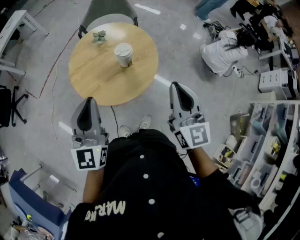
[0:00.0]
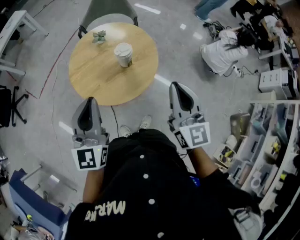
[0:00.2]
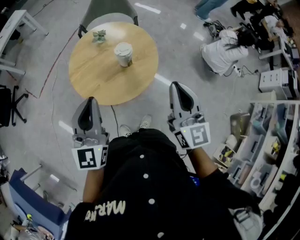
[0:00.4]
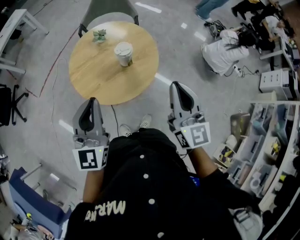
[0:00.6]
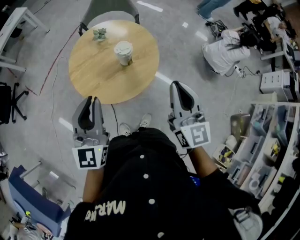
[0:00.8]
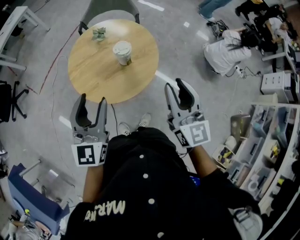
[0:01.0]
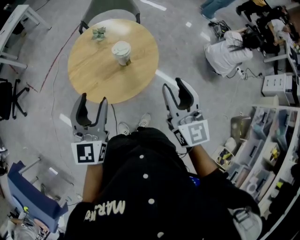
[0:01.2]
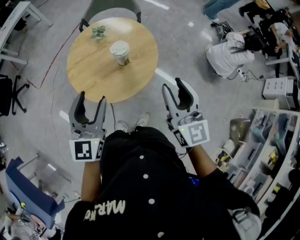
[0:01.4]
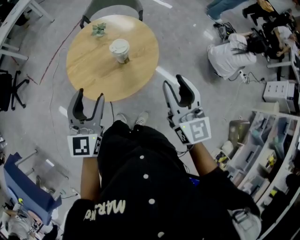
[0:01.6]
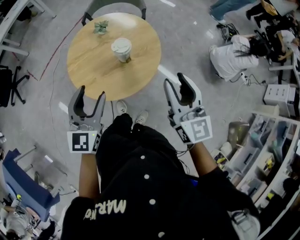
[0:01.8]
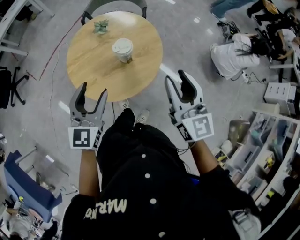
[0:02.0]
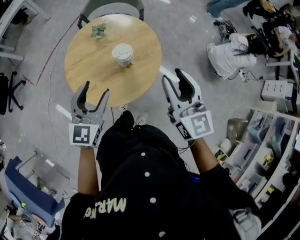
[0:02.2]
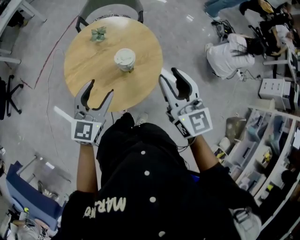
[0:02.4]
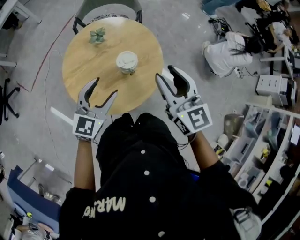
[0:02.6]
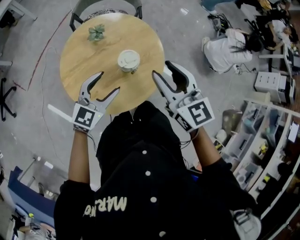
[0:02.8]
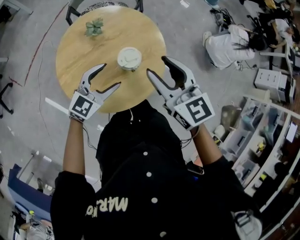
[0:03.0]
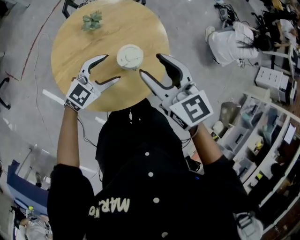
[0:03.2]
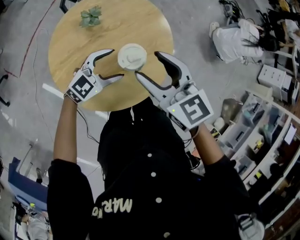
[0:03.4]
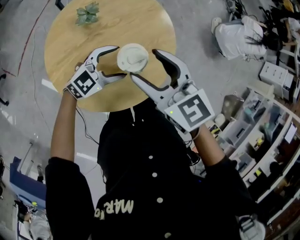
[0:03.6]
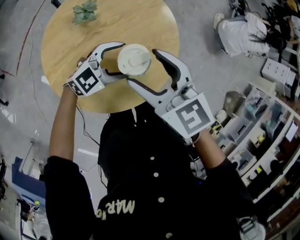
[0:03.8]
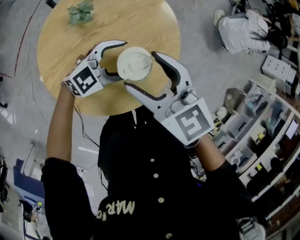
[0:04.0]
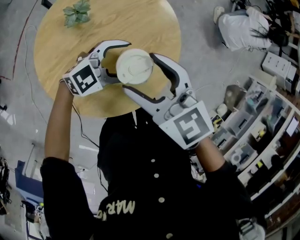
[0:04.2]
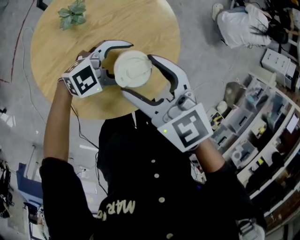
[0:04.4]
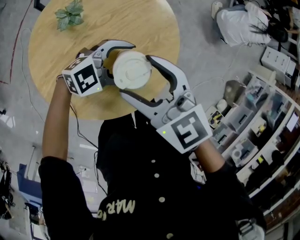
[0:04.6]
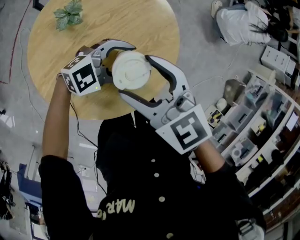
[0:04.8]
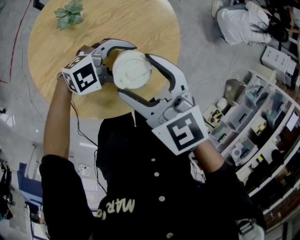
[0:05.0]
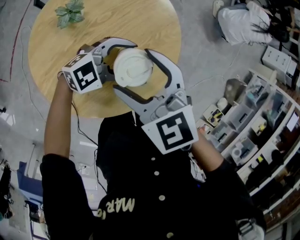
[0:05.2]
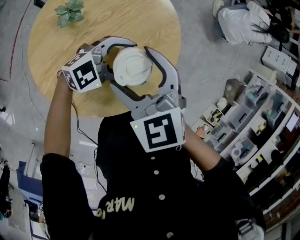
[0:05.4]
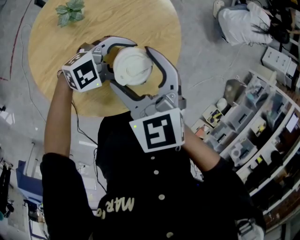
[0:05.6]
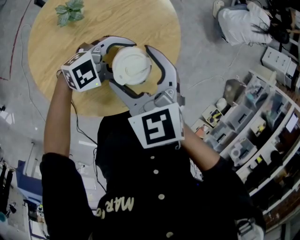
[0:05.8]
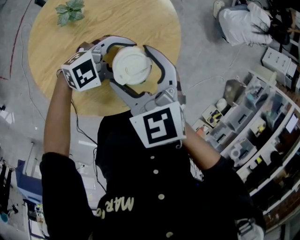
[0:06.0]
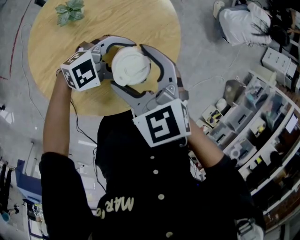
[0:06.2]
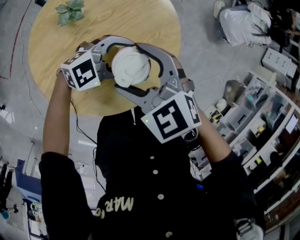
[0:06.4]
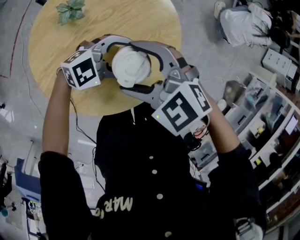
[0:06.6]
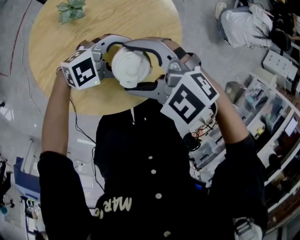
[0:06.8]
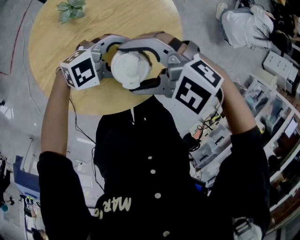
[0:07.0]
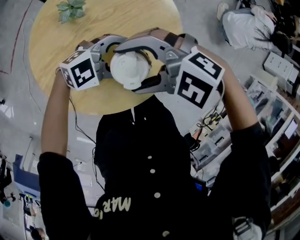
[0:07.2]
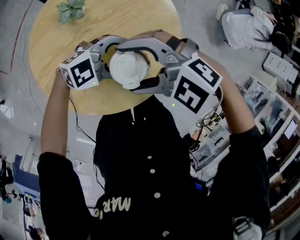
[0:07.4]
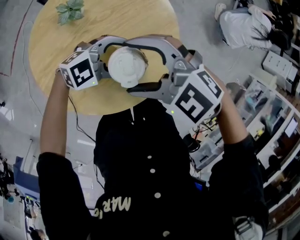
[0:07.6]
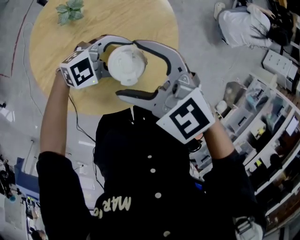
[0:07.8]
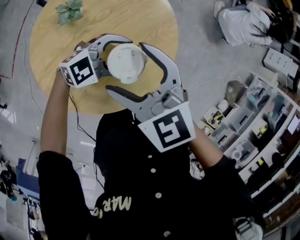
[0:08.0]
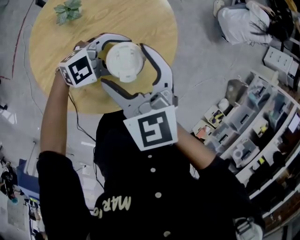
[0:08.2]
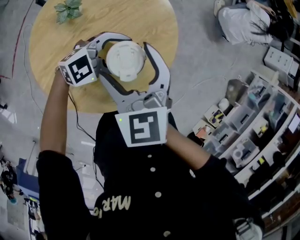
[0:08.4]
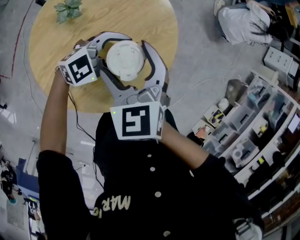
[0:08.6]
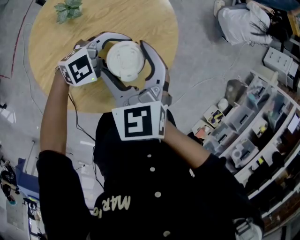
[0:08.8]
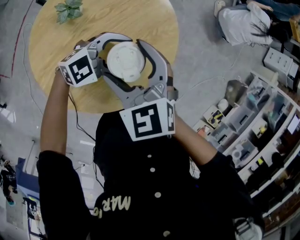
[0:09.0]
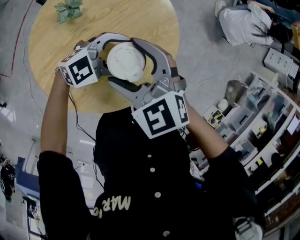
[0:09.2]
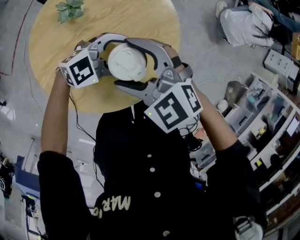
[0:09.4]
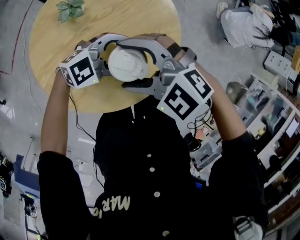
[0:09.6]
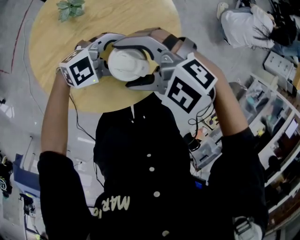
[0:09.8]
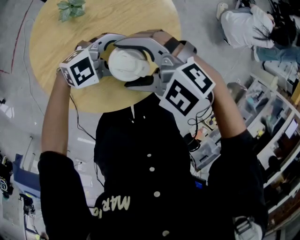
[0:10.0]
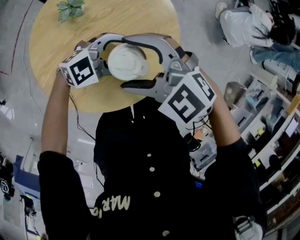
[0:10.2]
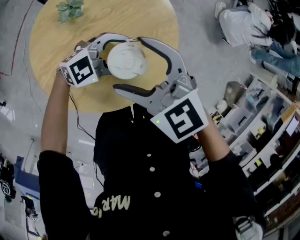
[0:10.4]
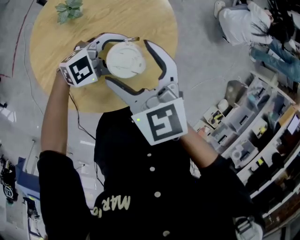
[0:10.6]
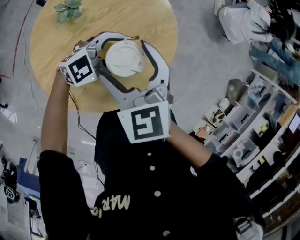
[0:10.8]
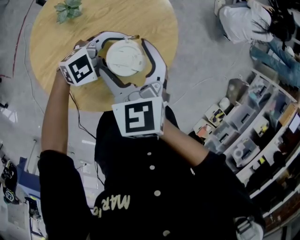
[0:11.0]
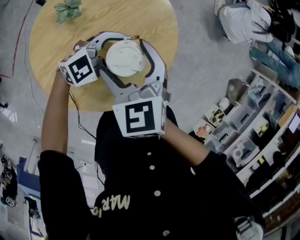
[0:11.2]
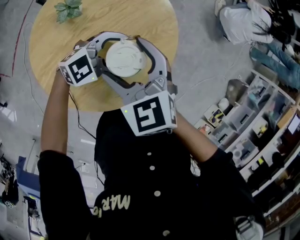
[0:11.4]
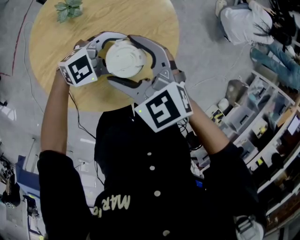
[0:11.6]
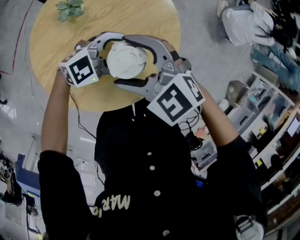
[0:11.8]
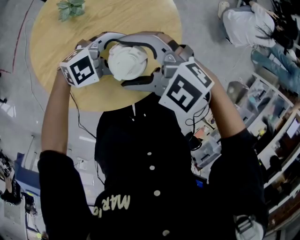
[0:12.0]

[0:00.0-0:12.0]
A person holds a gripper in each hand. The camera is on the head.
0:00.0 to 0:01.6: The left gripper shifts some 5 cm downward, and opens its fingers, while the right gripper is displaced forward by roughly 5 cm.
0:01.6 to 0:03.0: The left gripper shifts roughly 25 cm forward and downward, and rotates roughly 40 degrees. Meanwhile the right gripper travels forward, to the left and downward by approximately 25 cm.
0:03.0 to 0:04.4: Both grippers travel together downward, some 15 cm. The left gripper swivels approximately 40 degrees; the right gripper turns by some 20 degrees.
0:04.4 to 0:06.0: The grippers stay close to where they were, moving slightly.
0:06.0 to 0:07.6: The right gripper turns by roughly 50 degrees.
0:07.6 to 0:09.0: The right gripper rotates about 50 degrees.
0:09.0 to 0:10.4: The right gripper turns by roughly 20 degrees.
0:10.4 to 0:12.0: The right gripper changes its angle by about 30 degrees.

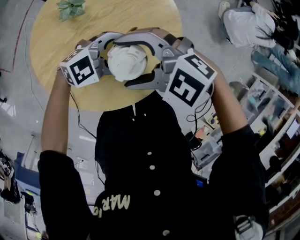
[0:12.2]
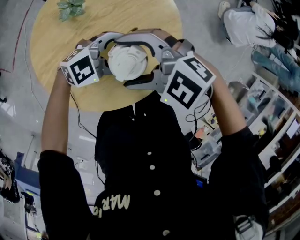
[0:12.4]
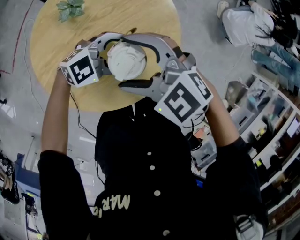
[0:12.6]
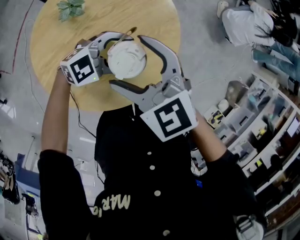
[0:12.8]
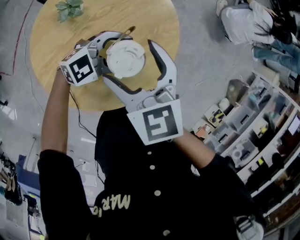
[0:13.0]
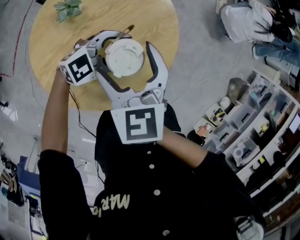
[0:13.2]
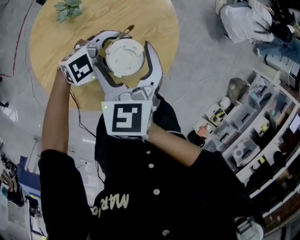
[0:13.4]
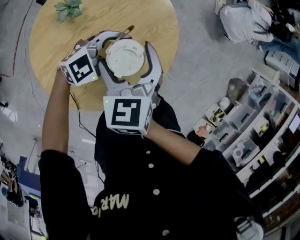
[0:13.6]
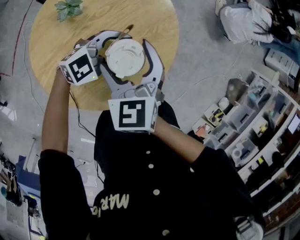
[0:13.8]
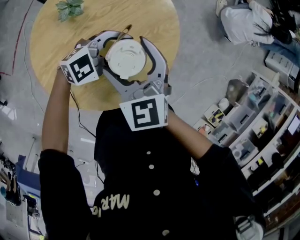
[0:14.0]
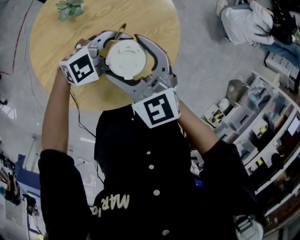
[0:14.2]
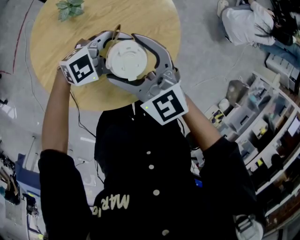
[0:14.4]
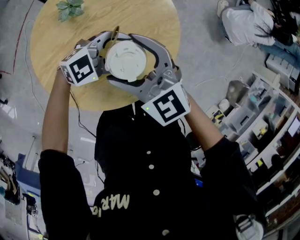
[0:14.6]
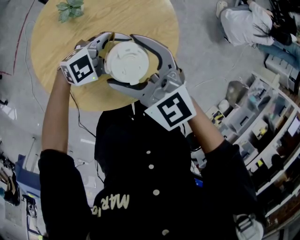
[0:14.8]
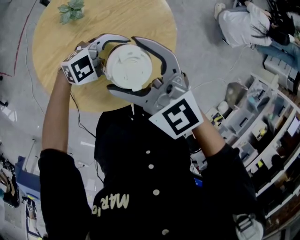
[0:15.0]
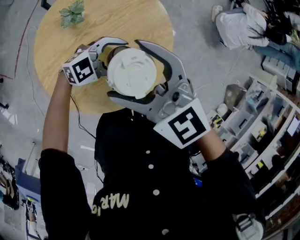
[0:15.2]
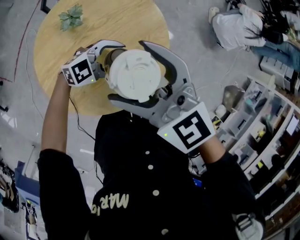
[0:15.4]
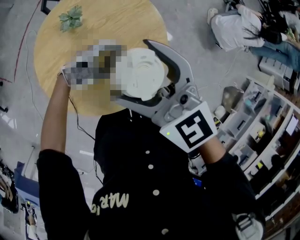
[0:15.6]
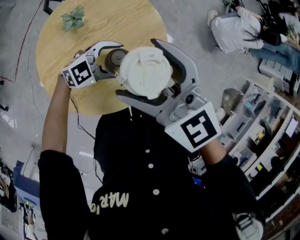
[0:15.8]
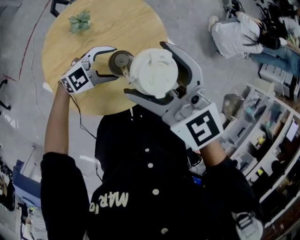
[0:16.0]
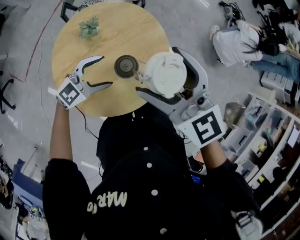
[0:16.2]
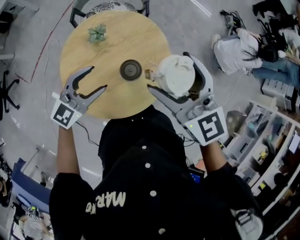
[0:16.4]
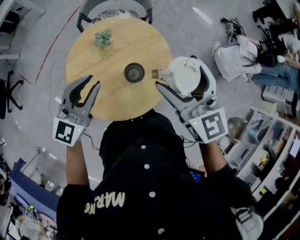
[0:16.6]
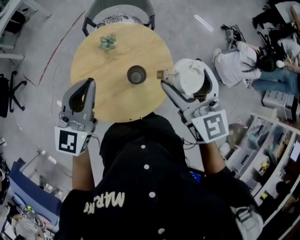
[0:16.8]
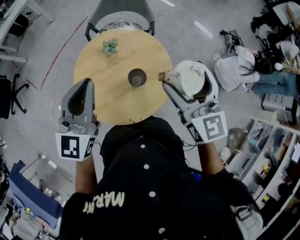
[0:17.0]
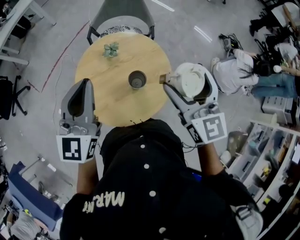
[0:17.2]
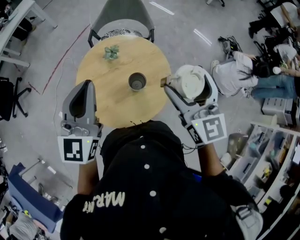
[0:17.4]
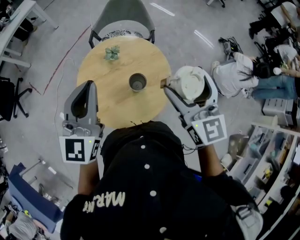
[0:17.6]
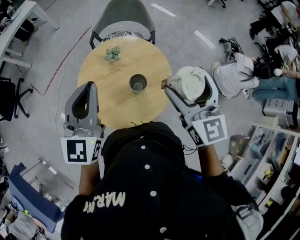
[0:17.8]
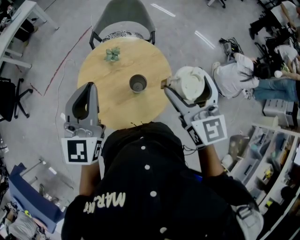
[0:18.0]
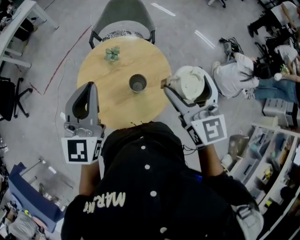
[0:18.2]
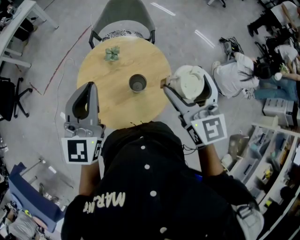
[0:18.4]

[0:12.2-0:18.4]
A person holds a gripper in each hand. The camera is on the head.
0:12.2 to 0:13.8: The right gripper rotates approximately 80 degrees.
0:13.8 to 0:15.4: The right gripper shifts approximately 15 cm upward, and changes its angle by about 40 degrees.
0:15.4 to 0:16.8: The right gripper is displaced upward by about 15 cm, and turns by about 20 degrees, while the left gripper heads upward, covering some 35 cm, rotates approximately 70 degrees, and closes.
0:16.8 to 0:18.4: The left gripper goes roughly 5 cm upward.

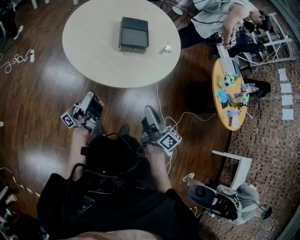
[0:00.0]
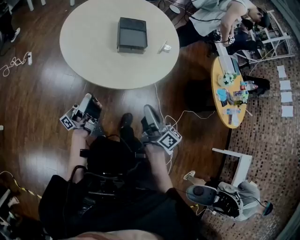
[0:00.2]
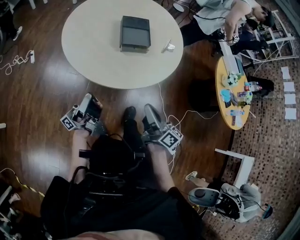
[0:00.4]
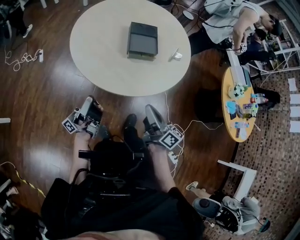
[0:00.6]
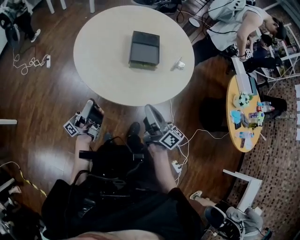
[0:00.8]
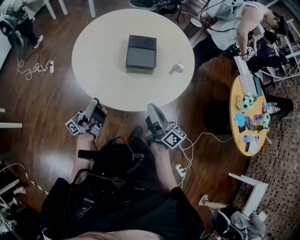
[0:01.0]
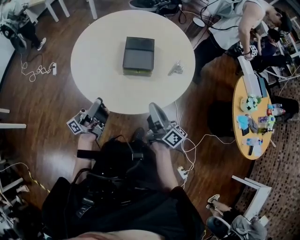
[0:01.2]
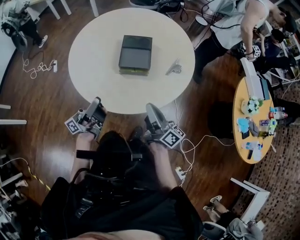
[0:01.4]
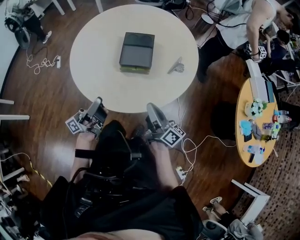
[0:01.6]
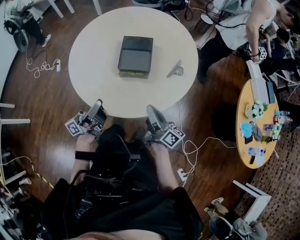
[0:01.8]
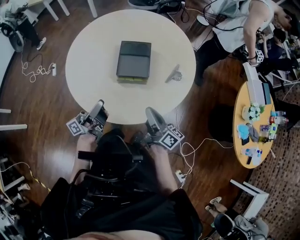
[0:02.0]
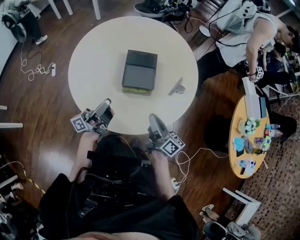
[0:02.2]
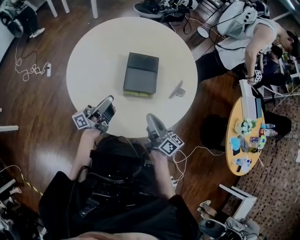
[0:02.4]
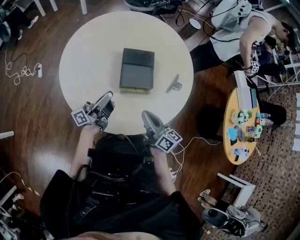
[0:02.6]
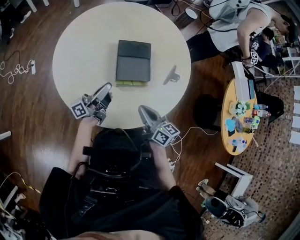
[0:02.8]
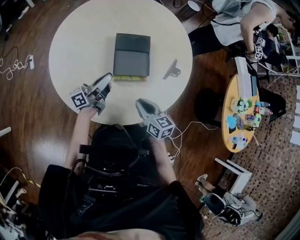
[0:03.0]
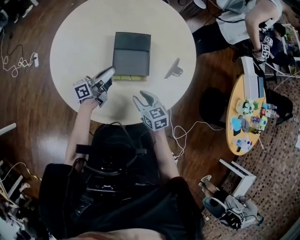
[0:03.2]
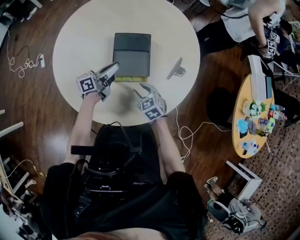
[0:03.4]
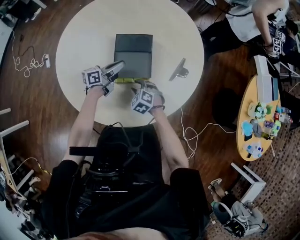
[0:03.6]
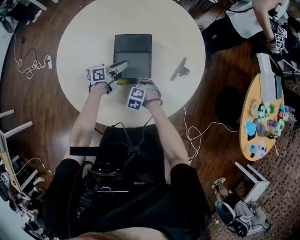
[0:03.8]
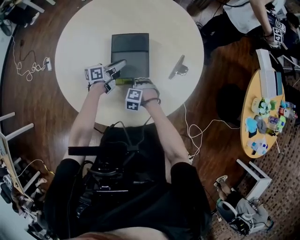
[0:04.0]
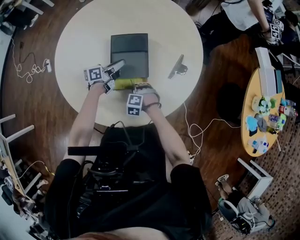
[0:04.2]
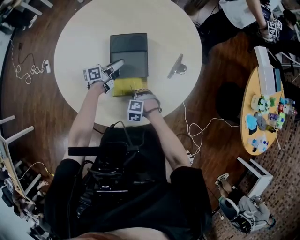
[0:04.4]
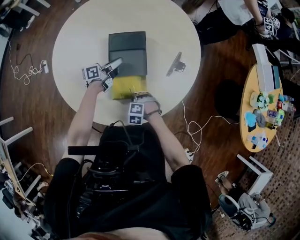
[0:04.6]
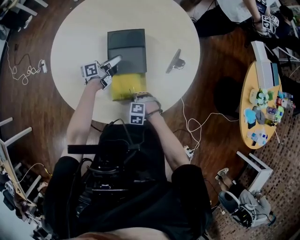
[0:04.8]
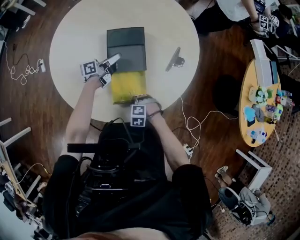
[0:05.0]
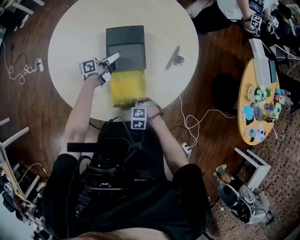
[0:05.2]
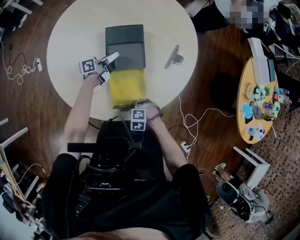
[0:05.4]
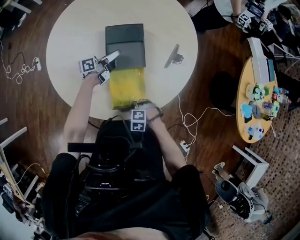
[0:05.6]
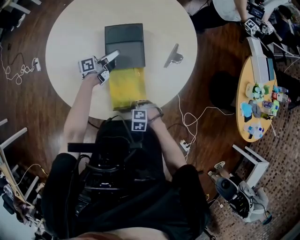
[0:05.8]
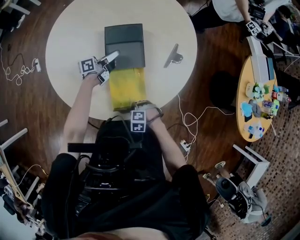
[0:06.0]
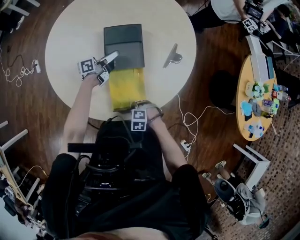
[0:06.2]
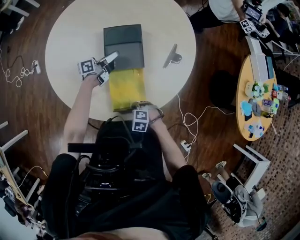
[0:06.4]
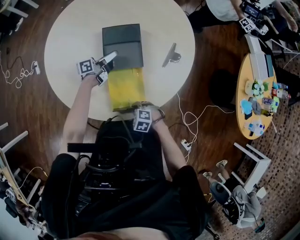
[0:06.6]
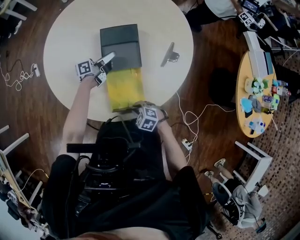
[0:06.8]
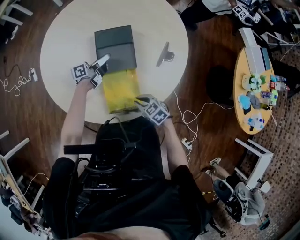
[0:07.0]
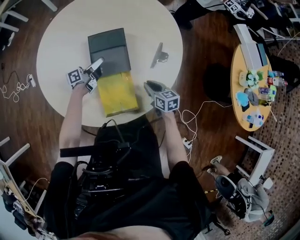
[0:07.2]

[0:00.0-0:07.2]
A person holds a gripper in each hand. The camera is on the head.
0:00.0 to 0:01.4: The grippers both shift forward and to the right by some 20 cm. The left gripper changes its angle by some 20 degrees.
0:01.4 to 0:02.8: The right gripper heads forward, to the left and downward, covering about 15 cm, and rotates some 30 degrees. Meanwhile the left gripper travels forward by some 20 cm.
0:02.8 to 0:04.4: The left gripper moves forward, downward and to the right, approximately 25 cm, and points its fingers roughly 30 degrees further downward. Meanwhile the right gripper shifts approximately 25 cm downward, tilts its fingers roughly 60 degrees downward, and opens, then closes again.
0:04.4 to 0:05.8: The right gripper shifts by approximately 15 cm.
0:05.8 to 0:07.2: The right gripper moves about 25 cm, and rolls clockwise, seen from behind, by roughly 70 degrees.
